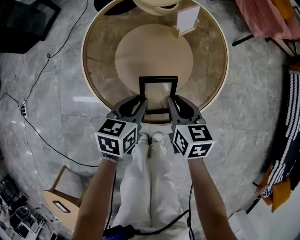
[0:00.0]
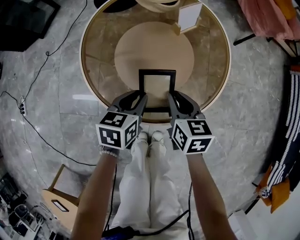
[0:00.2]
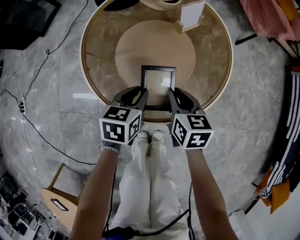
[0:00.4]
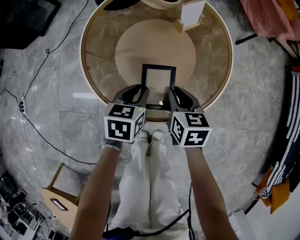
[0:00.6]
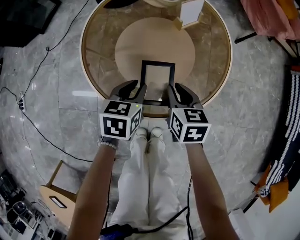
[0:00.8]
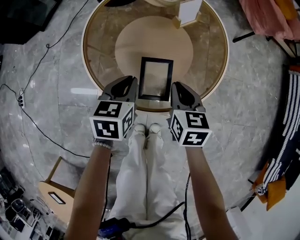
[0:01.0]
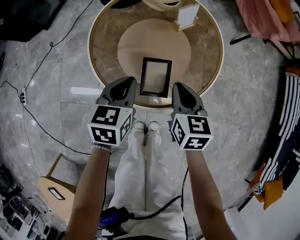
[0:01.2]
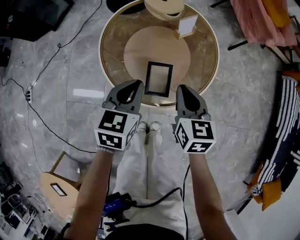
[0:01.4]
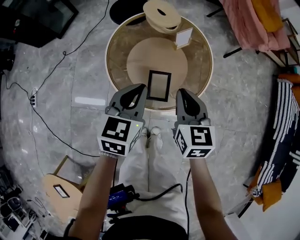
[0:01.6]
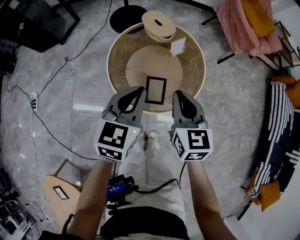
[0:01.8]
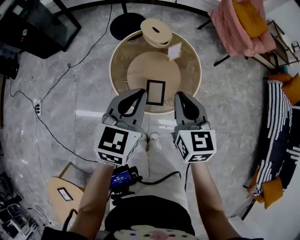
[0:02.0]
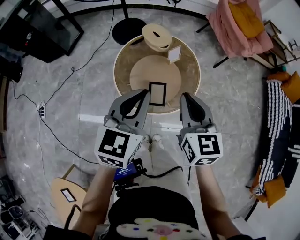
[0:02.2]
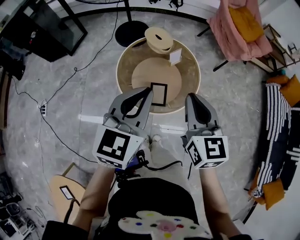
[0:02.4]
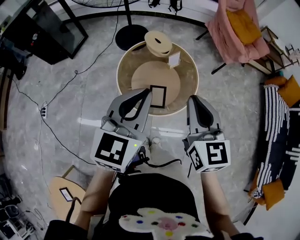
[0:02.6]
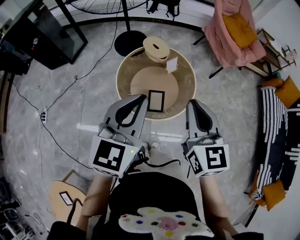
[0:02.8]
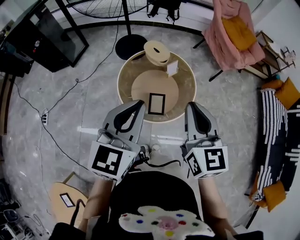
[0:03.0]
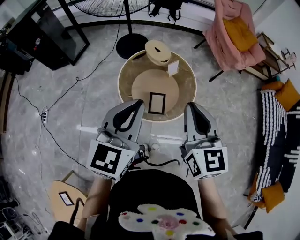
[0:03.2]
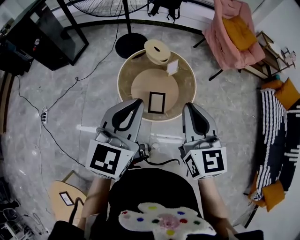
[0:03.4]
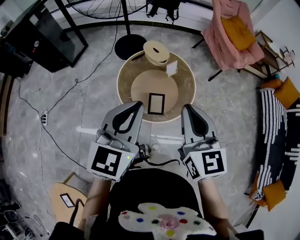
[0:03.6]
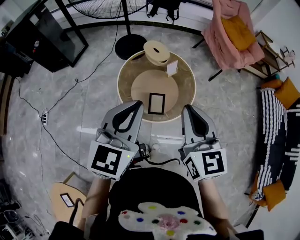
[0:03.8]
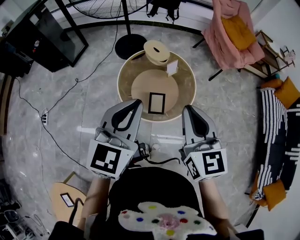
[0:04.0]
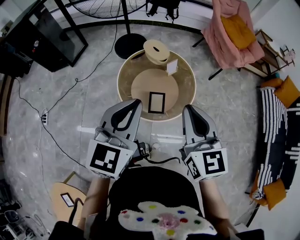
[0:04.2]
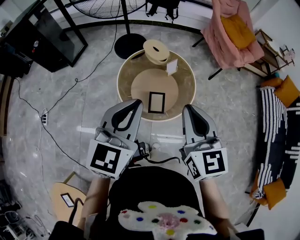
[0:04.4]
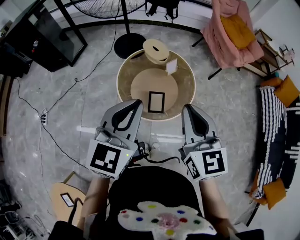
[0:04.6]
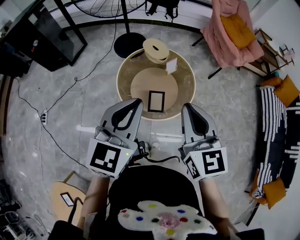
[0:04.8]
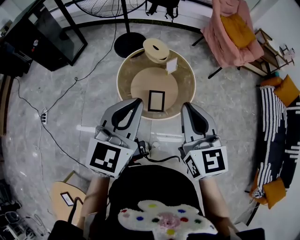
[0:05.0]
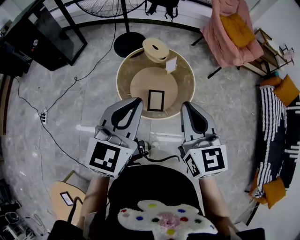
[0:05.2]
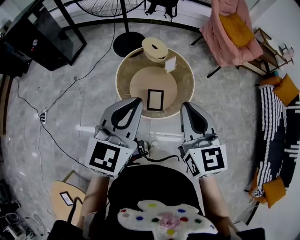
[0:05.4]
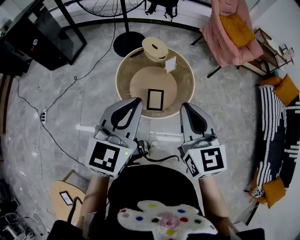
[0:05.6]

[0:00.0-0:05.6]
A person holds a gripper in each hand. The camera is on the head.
0:00.0 to 0:01.4: Both grippers travel together upward, about 15 cm.
0:01.4 to 0:02.8: The two grippers go approximately 35 cm upward. The left gripper turns by roughly 30 degrees. Meanwhile the right gripper swivels roughly 20 degrees.
0:02.8 to 0:04.2: There are only small adjustments of the grippers.
0:04.2 to 0:05.6: Neither gripper changes place.

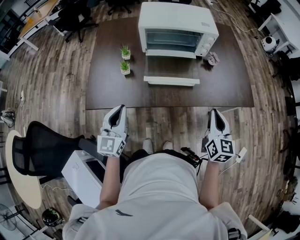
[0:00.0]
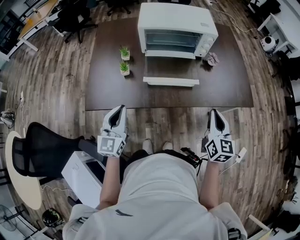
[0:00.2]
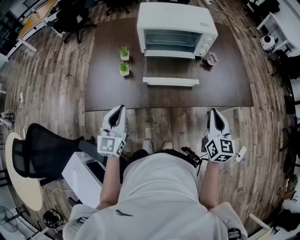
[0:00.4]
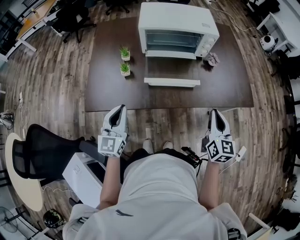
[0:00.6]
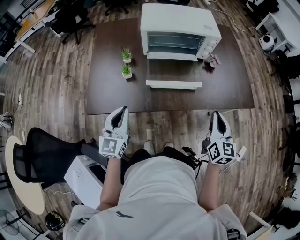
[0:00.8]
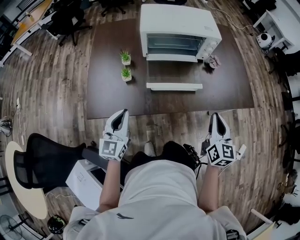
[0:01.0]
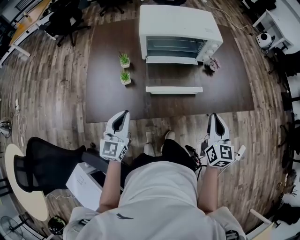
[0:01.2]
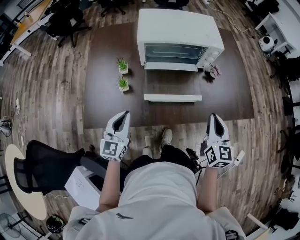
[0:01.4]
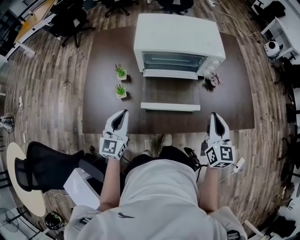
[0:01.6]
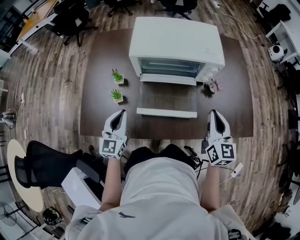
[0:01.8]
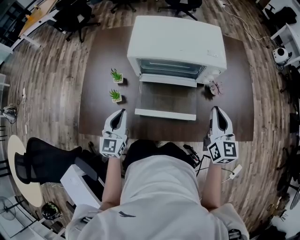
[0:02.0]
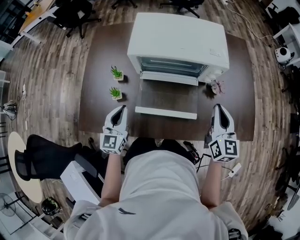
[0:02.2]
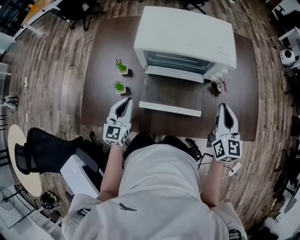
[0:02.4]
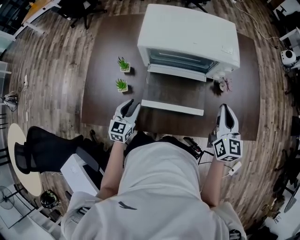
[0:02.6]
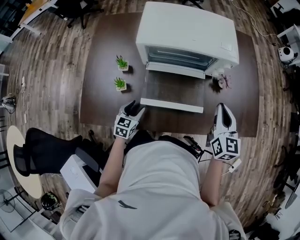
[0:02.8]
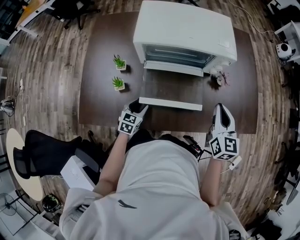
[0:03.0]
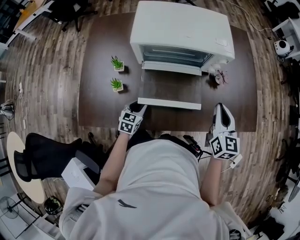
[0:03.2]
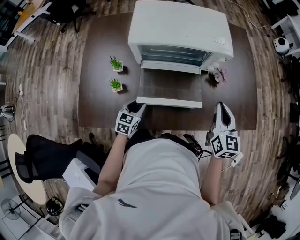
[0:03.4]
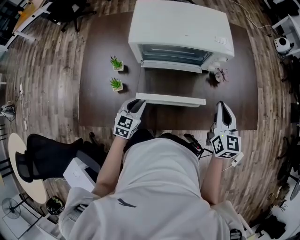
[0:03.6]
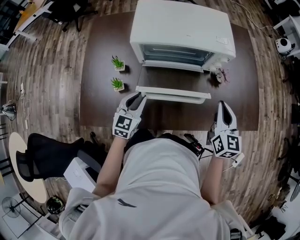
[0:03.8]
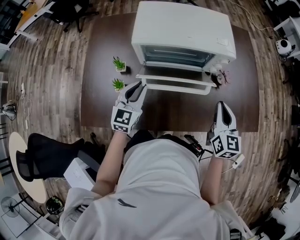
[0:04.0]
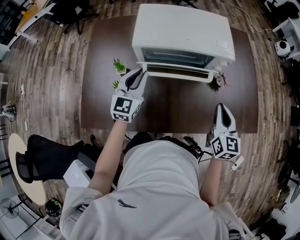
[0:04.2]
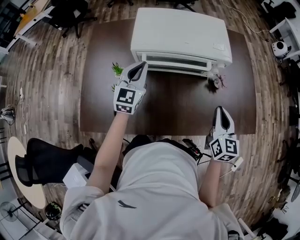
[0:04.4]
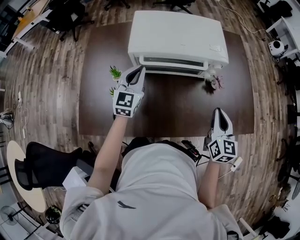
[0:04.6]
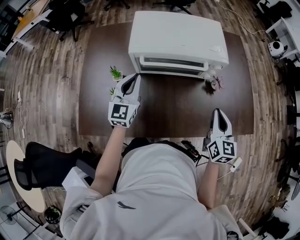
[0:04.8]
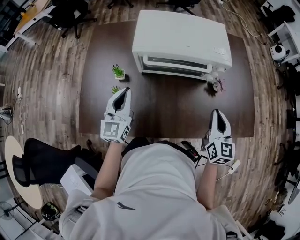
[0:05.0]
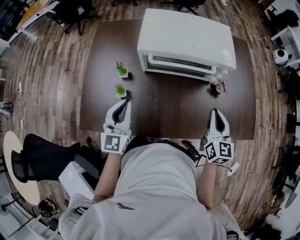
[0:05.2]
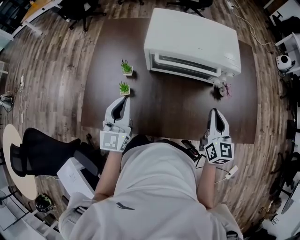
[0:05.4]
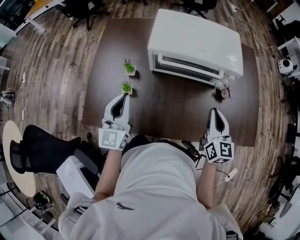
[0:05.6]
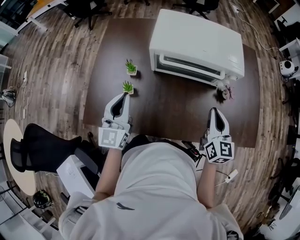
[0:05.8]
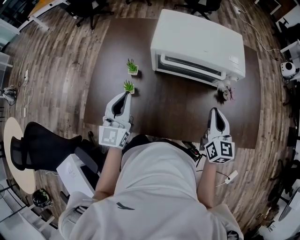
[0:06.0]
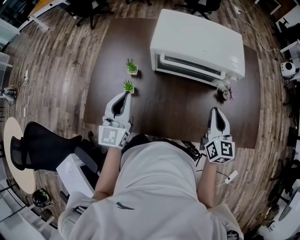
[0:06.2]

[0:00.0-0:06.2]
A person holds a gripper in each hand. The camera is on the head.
0:00.0 to 0:01.6: Both grippers travel together forward, roughly 15 cm.
0:01.6 to 0:03.2: The left gripper heads downward, covering about 20 cm, rotates approximately 30 degrees, and opens its fingers. Meanwhile the right gripper goes about 5 cm forward.
0:03.2 to 0:04.6: The left gripper travels upward and forward by some 30 cm, swivels roughly 30 degrees, and closes its fingers.
0:04.6 to 0:06.2: The right gripper shifts some 5 cm to the left. Meanwhile the left gripper travels backward and to the left by about 15 cm.

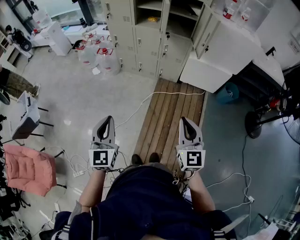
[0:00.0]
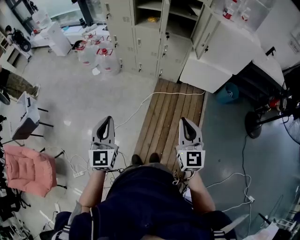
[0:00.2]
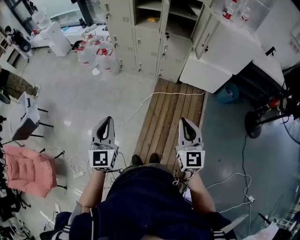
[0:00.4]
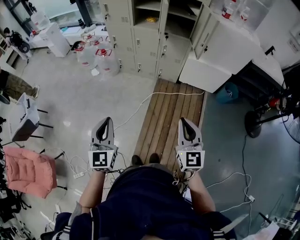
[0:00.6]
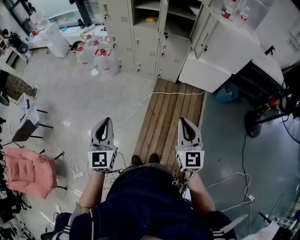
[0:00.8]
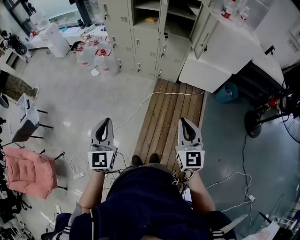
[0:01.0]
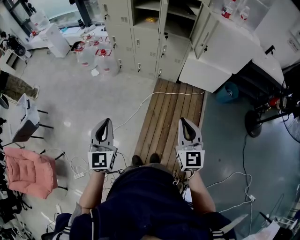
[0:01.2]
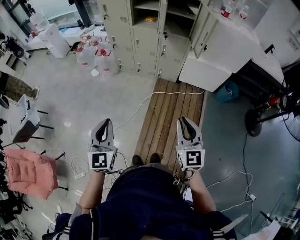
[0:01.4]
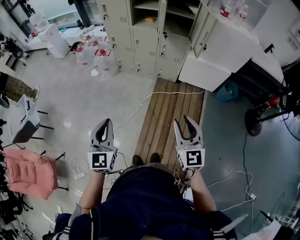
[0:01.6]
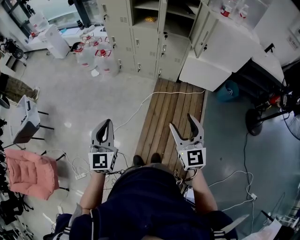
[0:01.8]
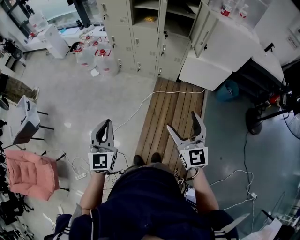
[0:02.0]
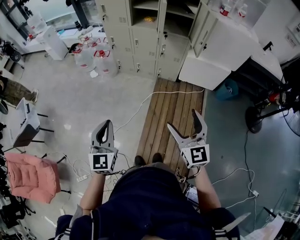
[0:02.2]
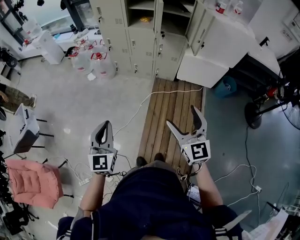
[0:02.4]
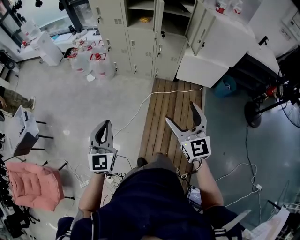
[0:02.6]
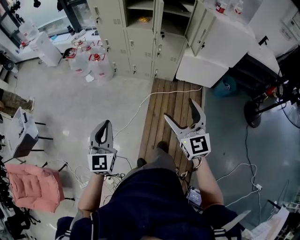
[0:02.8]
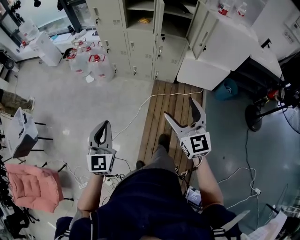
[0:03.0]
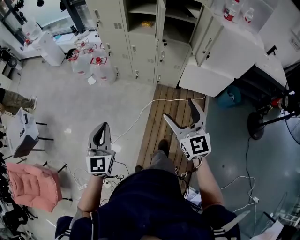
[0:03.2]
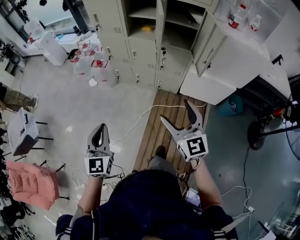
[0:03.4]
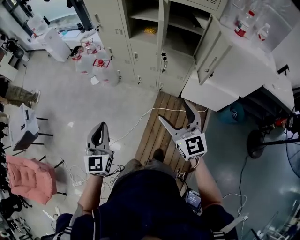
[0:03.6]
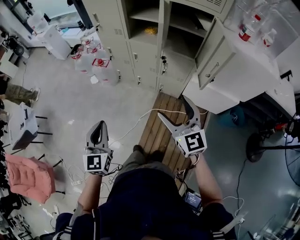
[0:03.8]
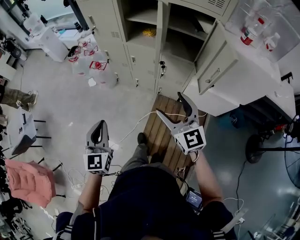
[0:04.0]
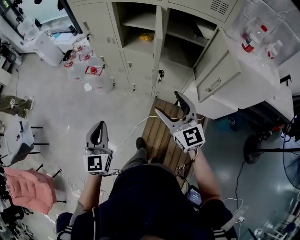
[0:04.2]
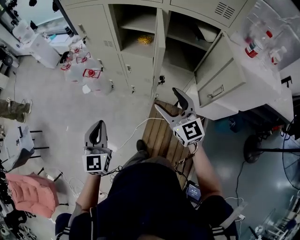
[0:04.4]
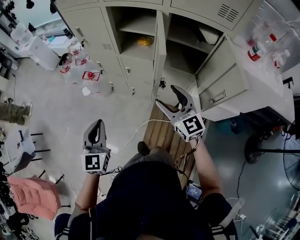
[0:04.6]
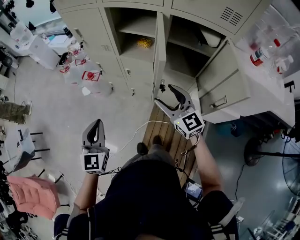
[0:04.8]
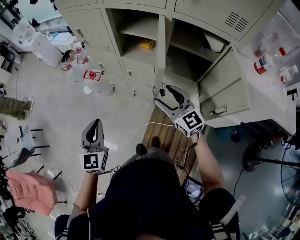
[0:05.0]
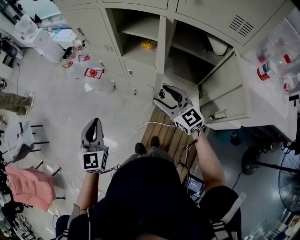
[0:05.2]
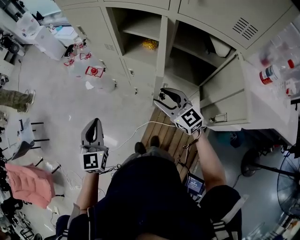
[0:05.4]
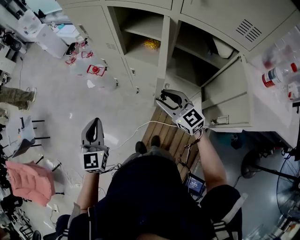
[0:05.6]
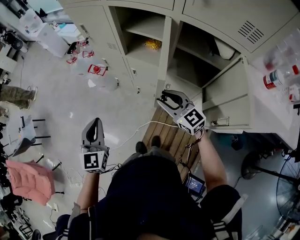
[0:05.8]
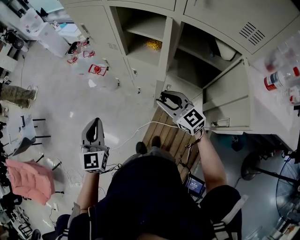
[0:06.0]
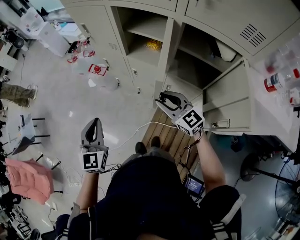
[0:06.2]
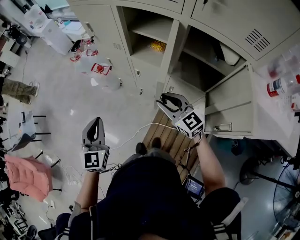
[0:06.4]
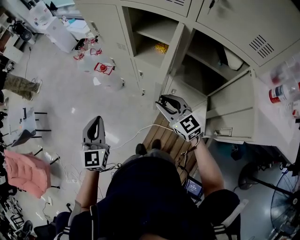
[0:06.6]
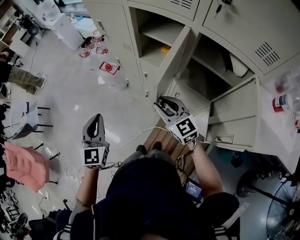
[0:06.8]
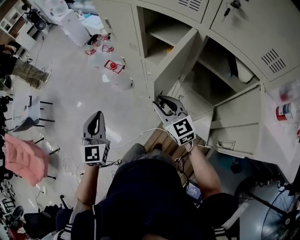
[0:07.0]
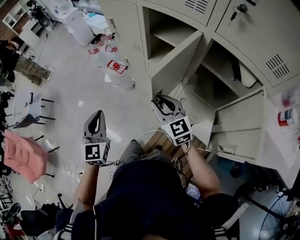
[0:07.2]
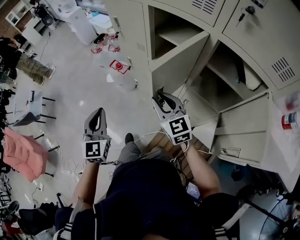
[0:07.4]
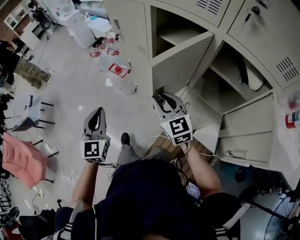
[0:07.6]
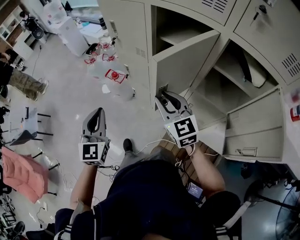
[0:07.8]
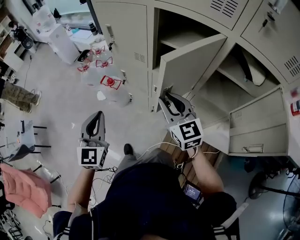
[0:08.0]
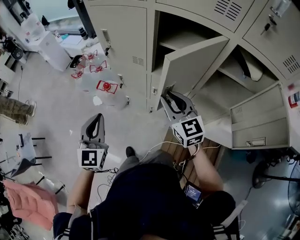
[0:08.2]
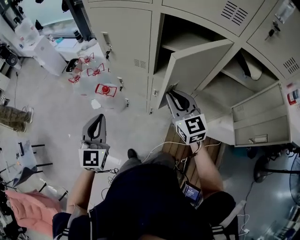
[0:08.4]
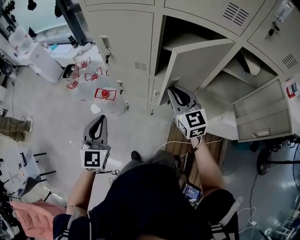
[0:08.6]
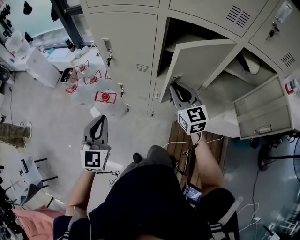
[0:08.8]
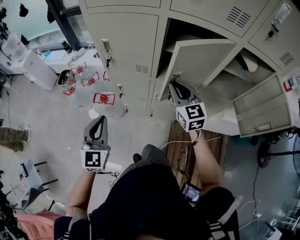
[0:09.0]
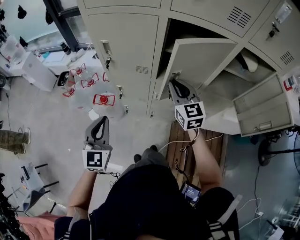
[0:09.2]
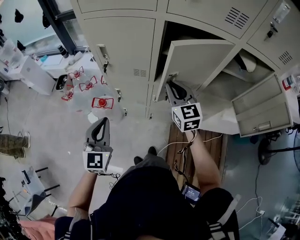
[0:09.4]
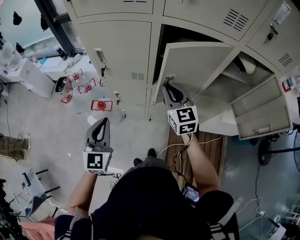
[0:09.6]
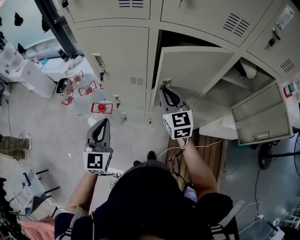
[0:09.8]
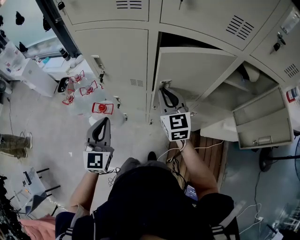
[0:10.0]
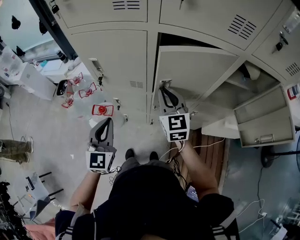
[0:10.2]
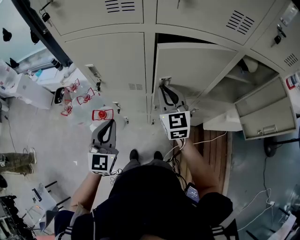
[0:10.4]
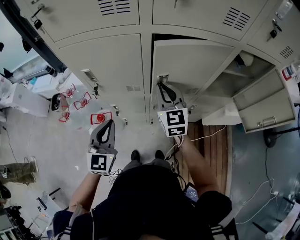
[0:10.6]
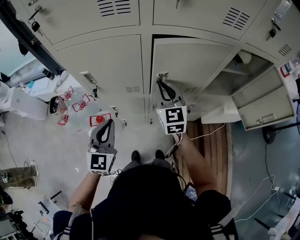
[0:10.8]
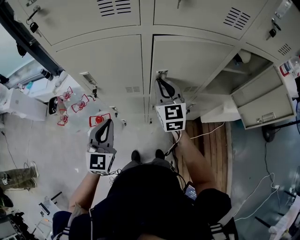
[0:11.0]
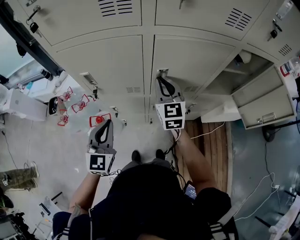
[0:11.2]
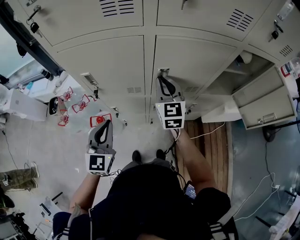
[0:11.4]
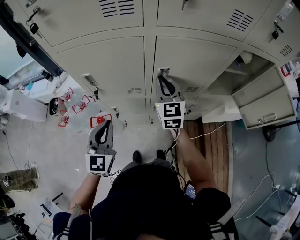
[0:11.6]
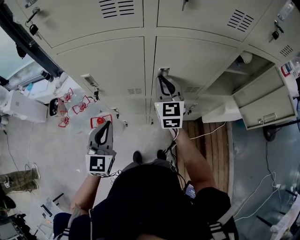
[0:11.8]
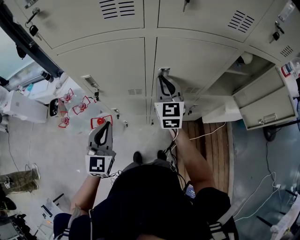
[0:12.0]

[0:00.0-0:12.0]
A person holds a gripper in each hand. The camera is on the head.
0:00.0 to 0:01.6: Neither gripper changes place.
0:01.6 to 0:03.0: The grippers both shift forward by some 10 cm. The right gripper opens its fingers.
0:03.0 to 0:04.4: The left gripper travels forward and to the right by approximately 35 cm; the right gripper travels forward by about 40 cm.
0:04.4 to 0:06.0: The left gripper moves forward, about 10 cm; the right gripper shifts roughly 15 cm forward and downward, swivels approximately 30 degrees, and closes.
0:06.0 to 0:07.6: The right gripper moves forward and to the left, about 10 cm. The left gripper moves forward, about 5 cm.
0:07.6 to 0:09.0: The left gripper moves some 25 cm, and swivels some 30 degrees, while the right gripper shifts by approximately 15 cm, and rotates some 30 degrees.
0:09.0 to 0:10.4: Both grippers travel together forward, about 10 cm.
0:10.4 to 0:12.0: The left gripper moves approximately 5 cm. The right gripper heads forward, covering roughly 5 cm.
